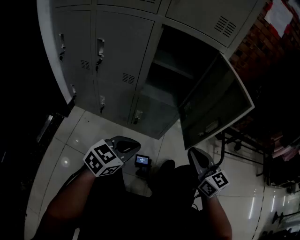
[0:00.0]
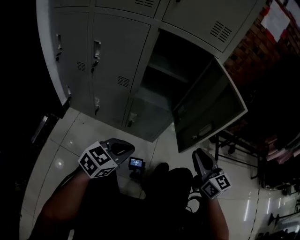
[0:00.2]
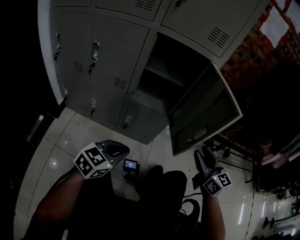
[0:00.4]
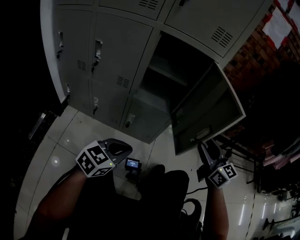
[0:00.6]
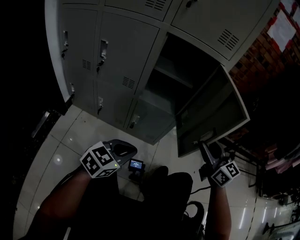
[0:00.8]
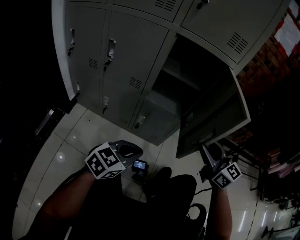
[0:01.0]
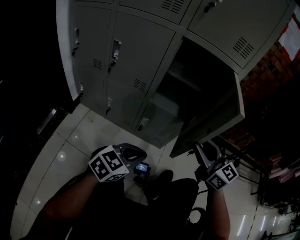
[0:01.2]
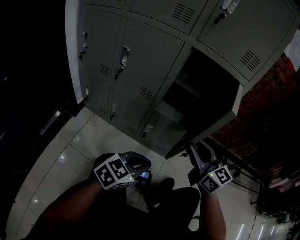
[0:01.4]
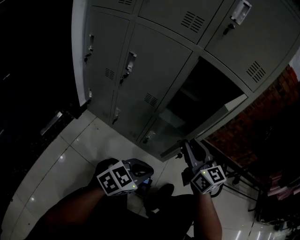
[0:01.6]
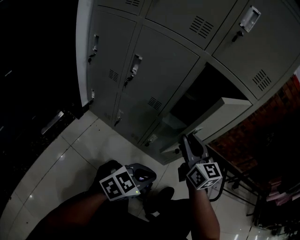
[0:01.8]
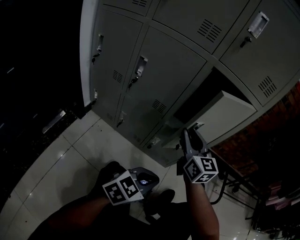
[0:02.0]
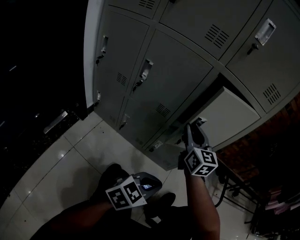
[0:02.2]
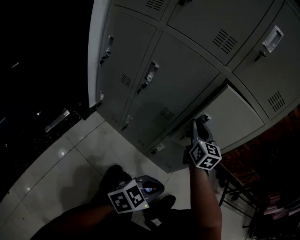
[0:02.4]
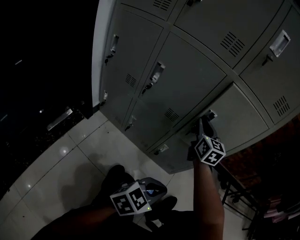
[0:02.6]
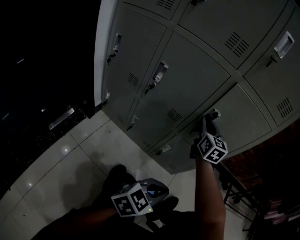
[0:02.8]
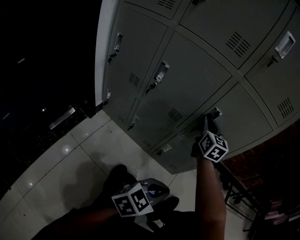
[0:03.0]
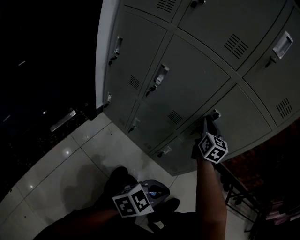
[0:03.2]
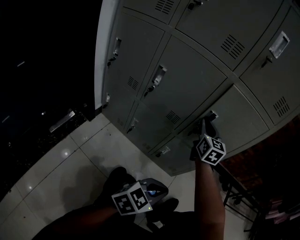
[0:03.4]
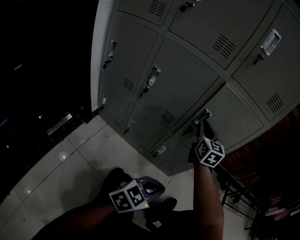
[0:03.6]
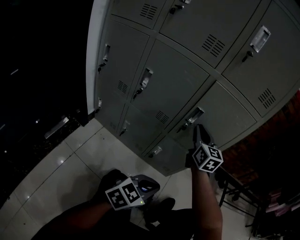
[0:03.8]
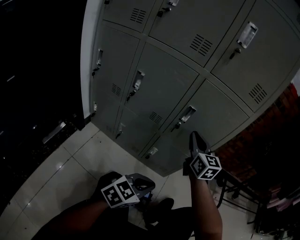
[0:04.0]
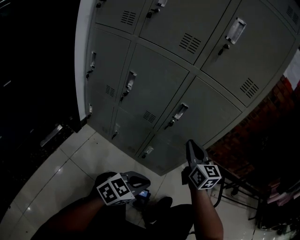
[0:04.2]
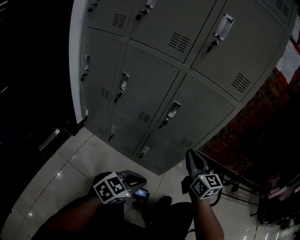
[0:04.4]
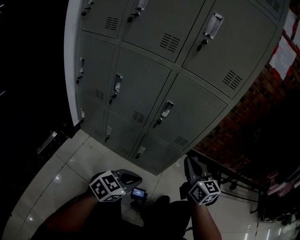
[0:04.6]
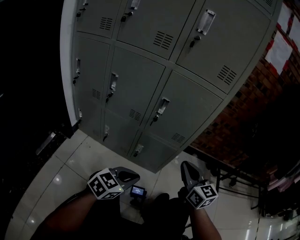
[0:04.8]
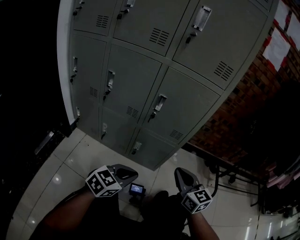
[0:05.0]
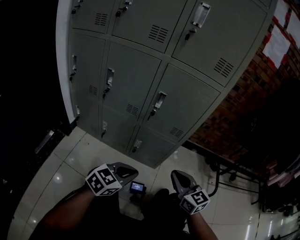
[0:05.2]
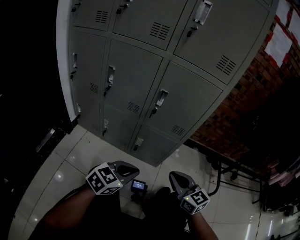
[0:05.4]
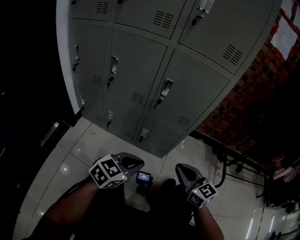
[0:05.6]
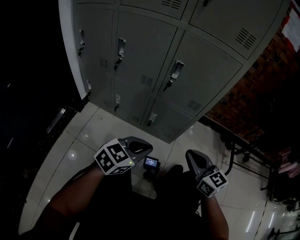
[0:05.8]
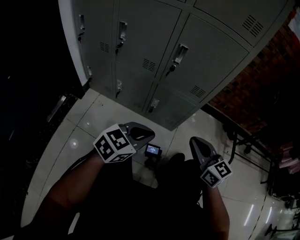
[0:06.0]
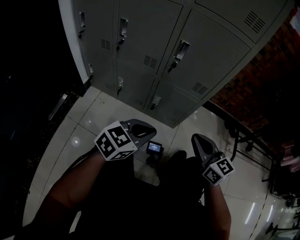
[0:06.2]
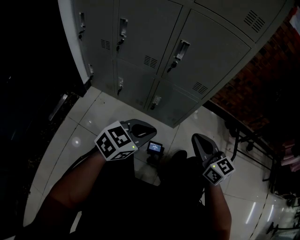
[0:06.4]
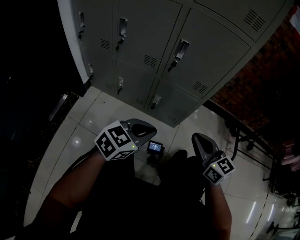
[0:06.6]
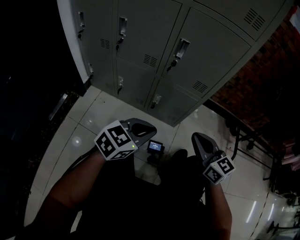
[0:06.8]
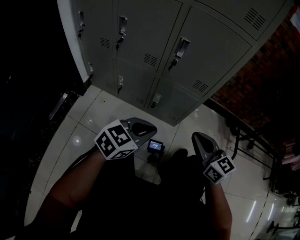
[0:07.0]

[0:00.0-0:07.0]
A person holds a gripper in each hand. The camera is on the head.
0:00.0 to 0:01.4: The right gripper travels to the left and forward by approximately 10 cm, and opens.
0:01.4 to 0:02.8: The right gripper goes some 25 cm forward and to the left, and turns by some 20 degrees.
0:02.8 to 0:04.2: The right gripper goes about 15 cm backward and to the right.
0:04.2 to 0:05.6: The right gripper moves backward, downward and to the right, roughly 20 cm.
0:05.6 to 0:07.0: Both grippers stay about where they are.

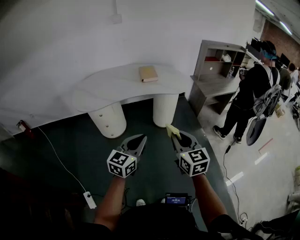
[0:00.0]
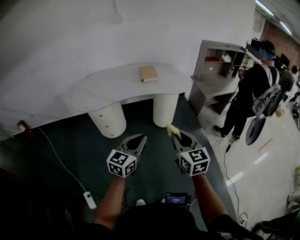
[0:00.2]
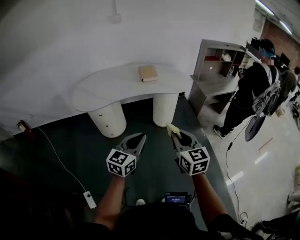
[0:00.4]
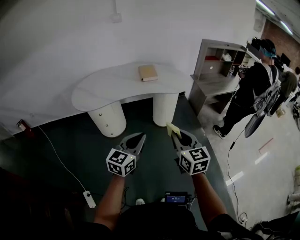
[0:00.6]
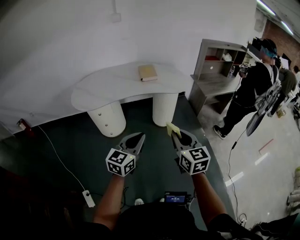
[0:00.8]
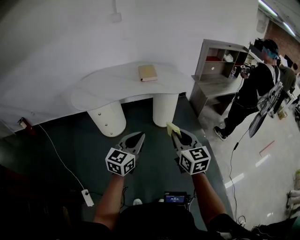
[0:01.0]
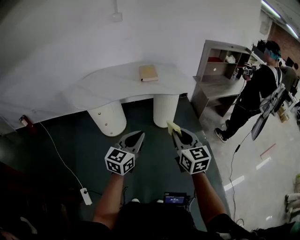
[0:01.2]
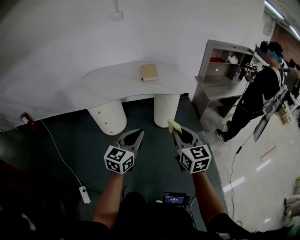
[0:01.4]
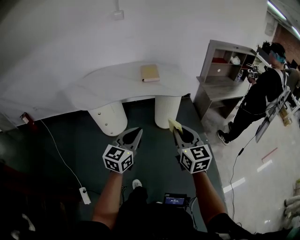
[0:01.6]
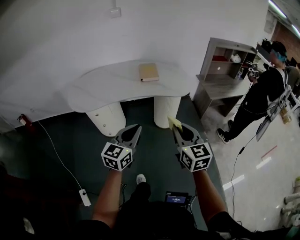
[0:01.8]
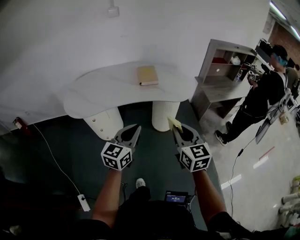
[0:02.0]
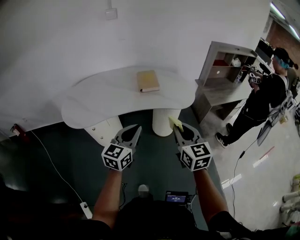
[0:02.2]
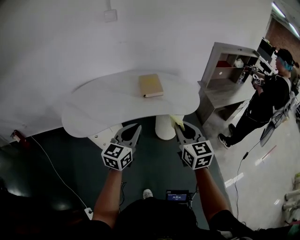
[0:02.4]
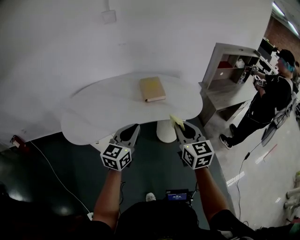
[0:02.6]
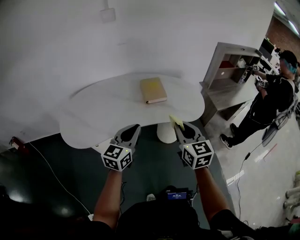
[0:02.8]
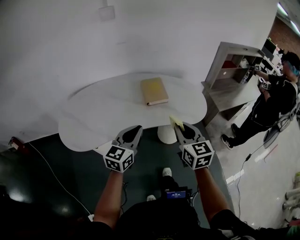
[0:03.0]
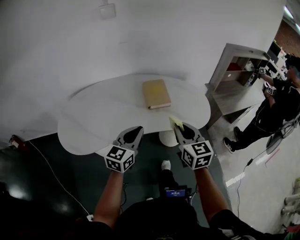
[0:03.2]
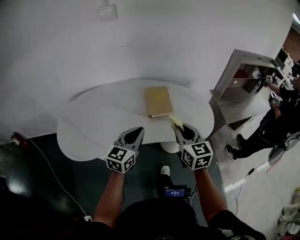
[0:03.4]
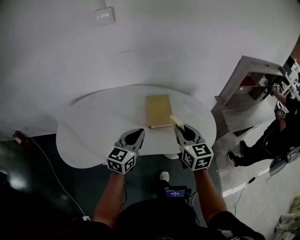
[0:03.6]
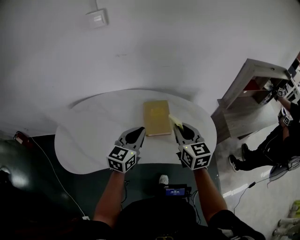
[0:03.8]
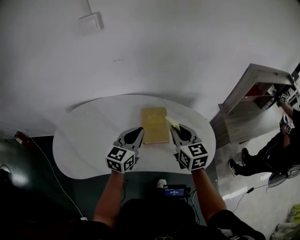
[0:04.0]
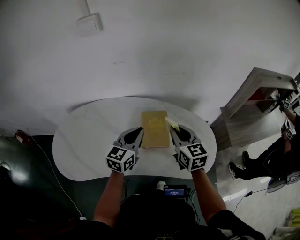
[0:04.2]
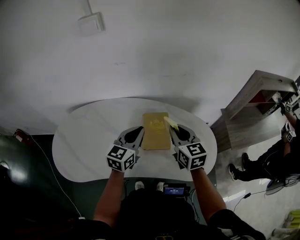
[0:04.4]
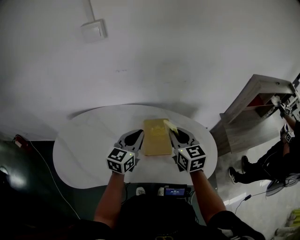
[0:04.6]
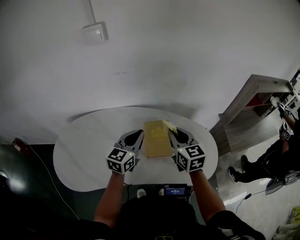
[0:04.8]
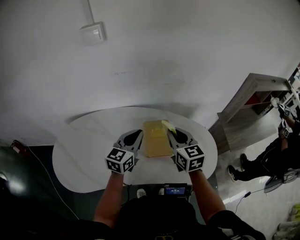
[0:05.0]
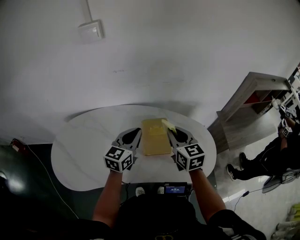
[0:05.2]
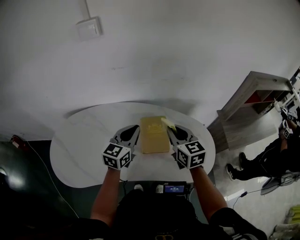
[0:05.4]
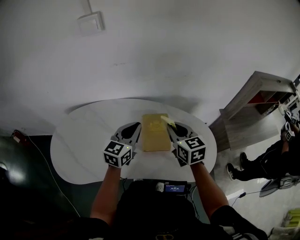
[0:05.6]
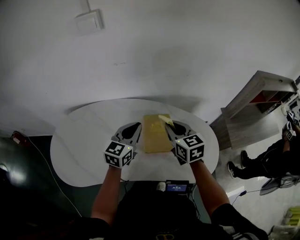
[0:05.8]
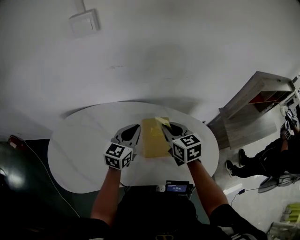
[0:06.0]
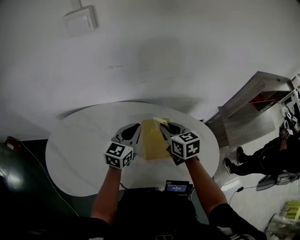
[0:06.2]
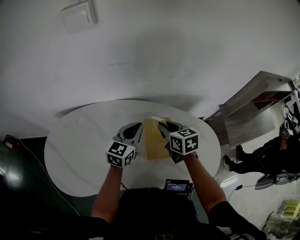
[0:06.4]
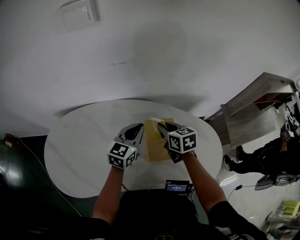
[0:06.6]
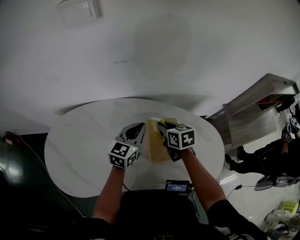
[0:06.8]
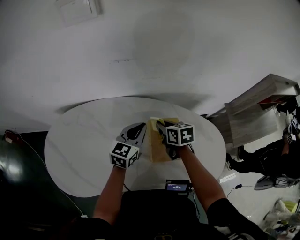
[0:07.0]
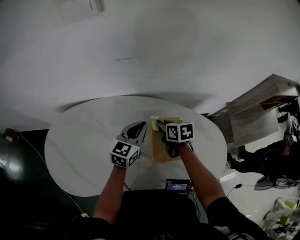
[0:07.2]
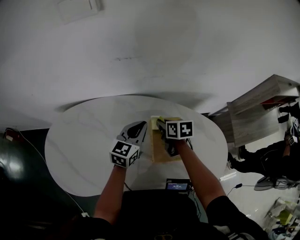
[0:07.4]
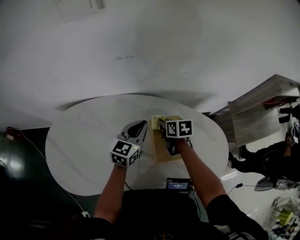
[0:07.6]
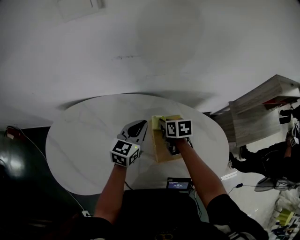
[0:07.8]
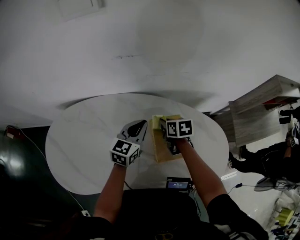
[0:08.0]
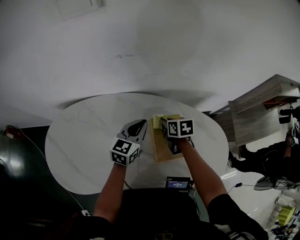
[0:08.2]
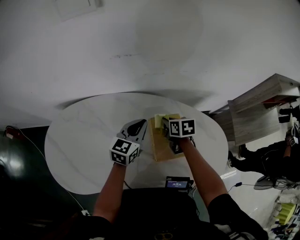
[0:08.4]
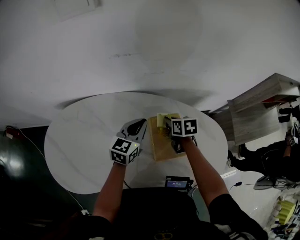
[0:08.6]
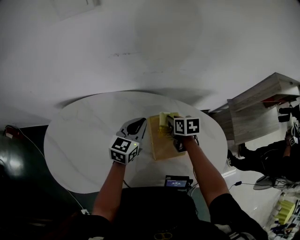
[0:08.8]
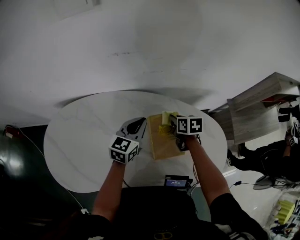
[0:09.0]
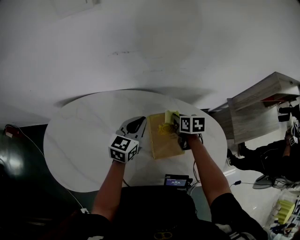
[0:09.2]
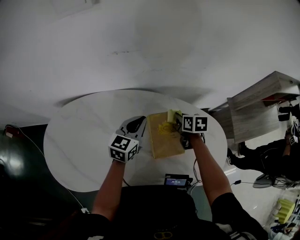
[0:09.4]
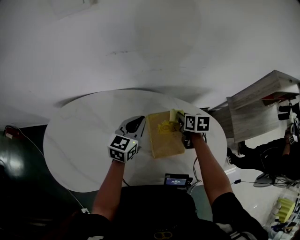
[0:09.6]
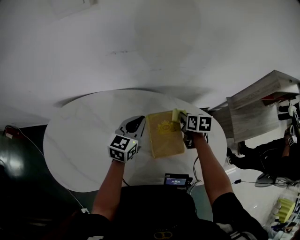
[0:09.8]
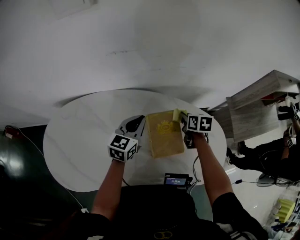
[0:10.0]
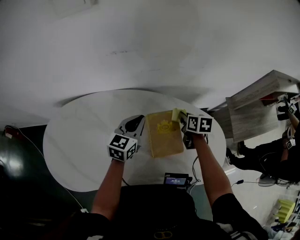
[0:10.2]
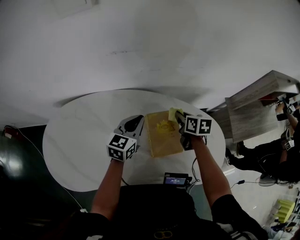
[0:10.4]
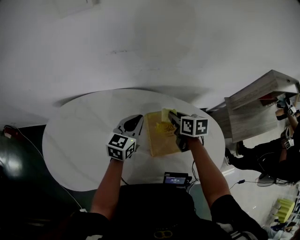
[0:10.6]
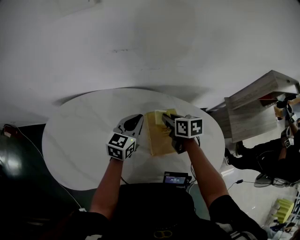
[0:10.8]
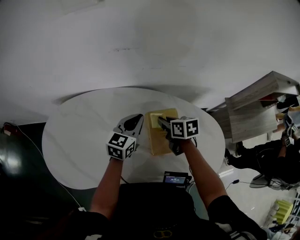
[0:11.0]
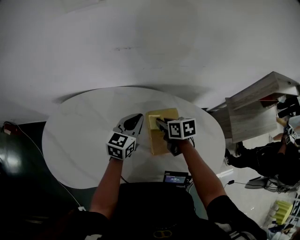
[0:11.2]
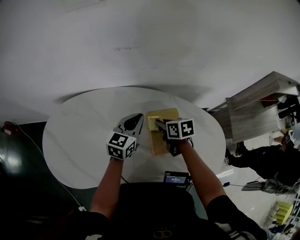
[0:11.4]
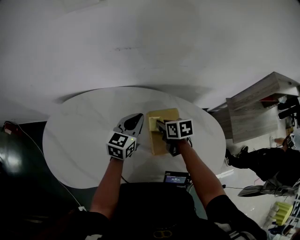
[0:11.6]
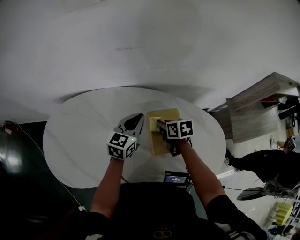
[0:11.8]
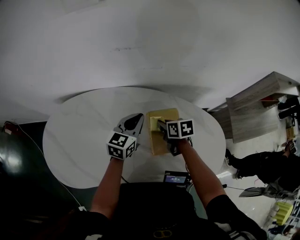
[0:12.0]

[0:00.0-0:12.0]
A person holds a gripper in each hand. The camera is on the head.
0:00.0 to 0:01.6: The right gripper goes roughly 10 cm forward and to the right. The left gripper shifts roughly 5 cm forward.
0:01.6 to 0:03.0: The two grippers go approximately 35 cm forward.
0:03.0 to 0:04.4: The two grippers go some 35 cm forward.
0:04.4 to 0:06.0: The left gripper heads forward, covering some 5 cm. Meanwhile the right gripper goes about 10 cm forward and to the left.
0:06.0 to 0:07.6: The left gripper heads downward and forward, covering approximately 10 cm. Meanwhile the right gripper is displaced downward and forward by approximately 20 cm, and rotates about 30 degrees.
0:07.6 to 0:09.0: The right gripper moves to the right, approximately 5 cm.
0:09.0 to 0:10.4: The right gripper moves about 5 cm.
0:10.4 to 0:12.0: The right gripper heads to the left, covering approximately 10 cm.

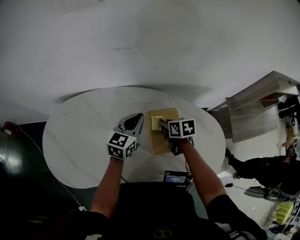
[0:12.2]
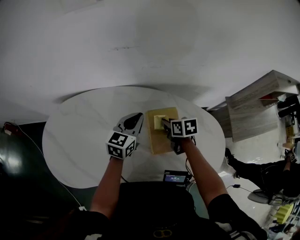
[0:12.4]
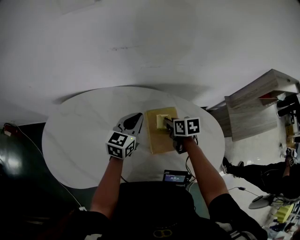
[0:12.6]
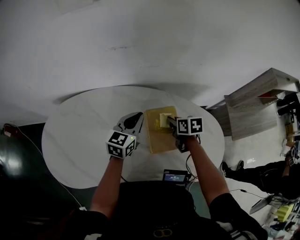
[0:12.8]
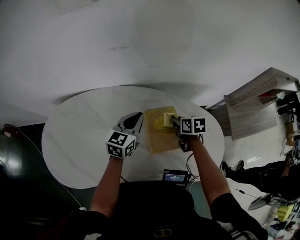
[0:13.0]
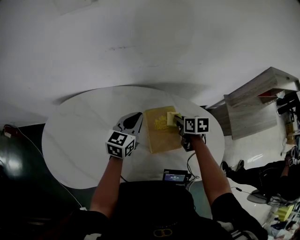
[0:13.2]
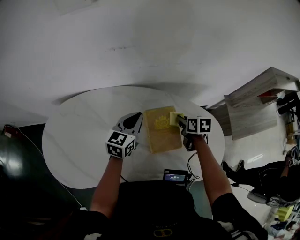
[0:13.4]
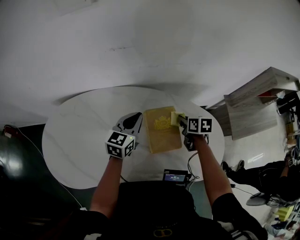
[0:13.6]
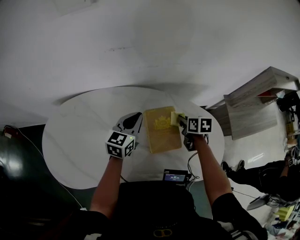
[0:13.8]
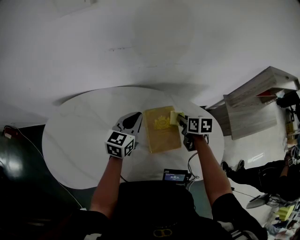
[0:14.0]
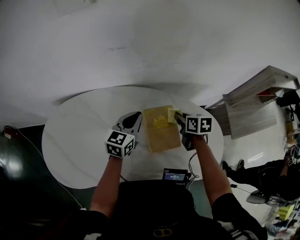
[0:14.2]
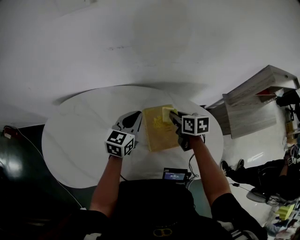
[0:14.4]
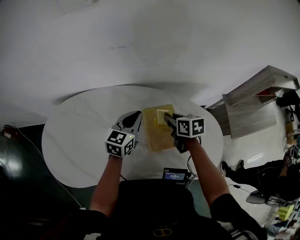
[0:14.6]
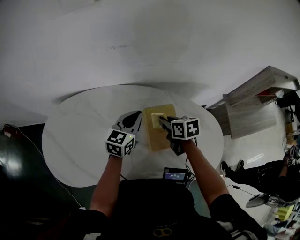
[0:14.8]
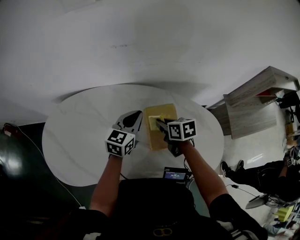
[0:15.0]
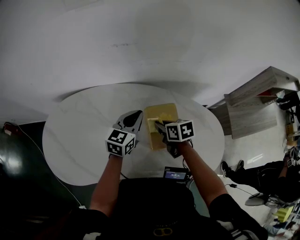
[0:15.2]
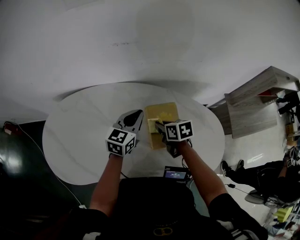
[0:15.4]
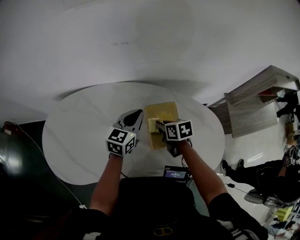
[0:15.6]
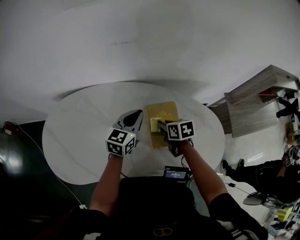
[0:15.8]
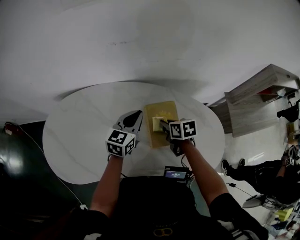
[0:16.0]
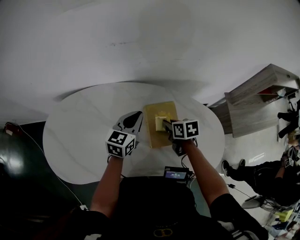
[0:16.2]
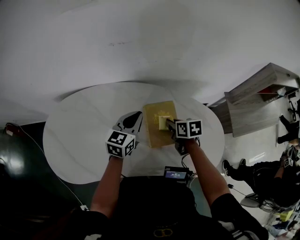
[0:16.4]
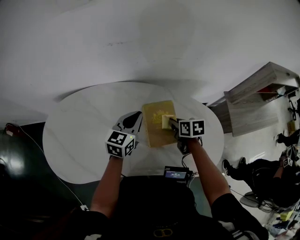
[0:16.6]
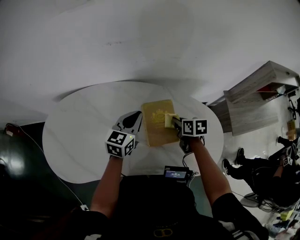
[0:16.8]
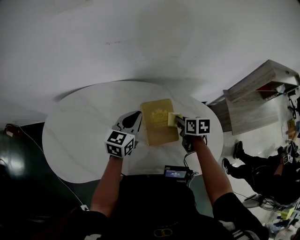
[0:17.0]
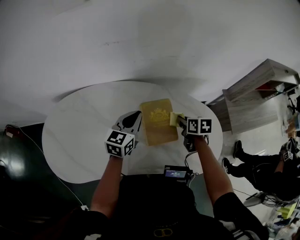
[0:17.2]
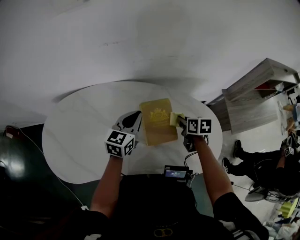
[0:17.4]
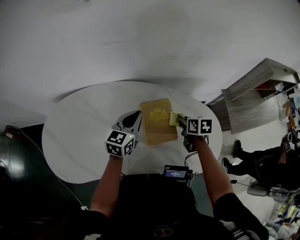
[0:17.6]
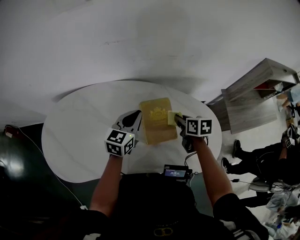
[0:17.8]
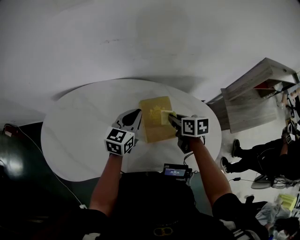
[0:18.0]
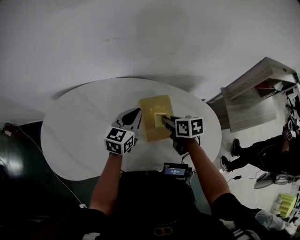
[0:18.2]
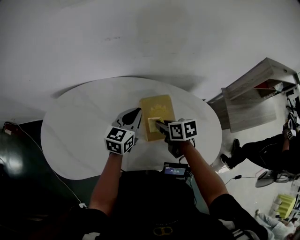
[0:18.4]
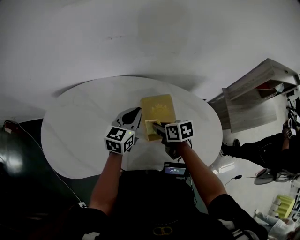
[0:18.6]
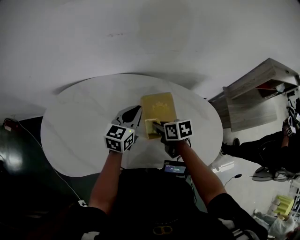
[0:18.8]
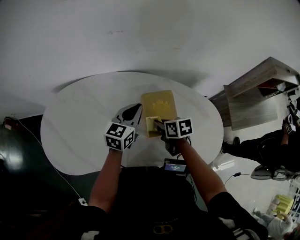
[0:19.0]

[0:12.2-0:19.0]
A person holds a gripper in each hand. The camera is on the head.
0:12.2 to 0:13.6: The right gripper travels to the right by some 10 cm.
0:13.6 to 0:15.0: The right gripper shifts approximately 10 cm to the left.
0:15.0 to 0:16.2: The right gripper changes place by some 5 cm.
0:16.2 to 0:17.6: The right gripper goes some 10 cm to the right.
0:17.6 to 0:19.0: The right gripper travels to the left by approximately 15 cm.
